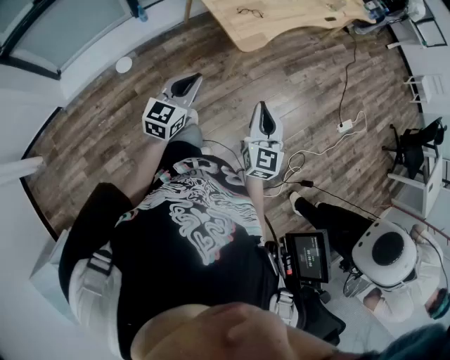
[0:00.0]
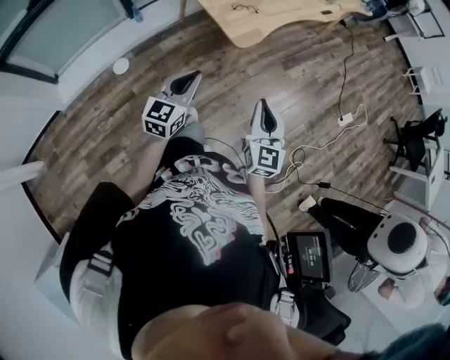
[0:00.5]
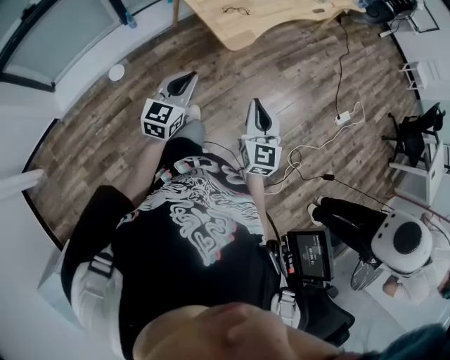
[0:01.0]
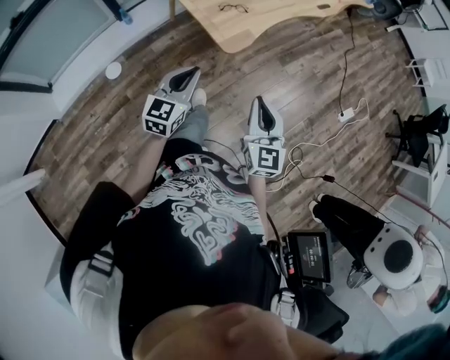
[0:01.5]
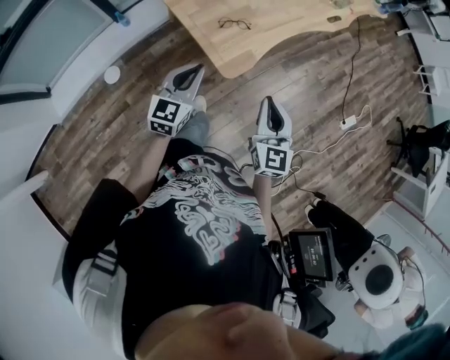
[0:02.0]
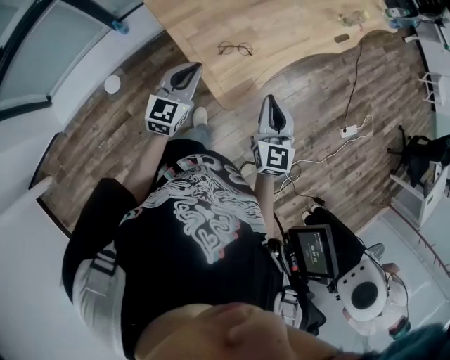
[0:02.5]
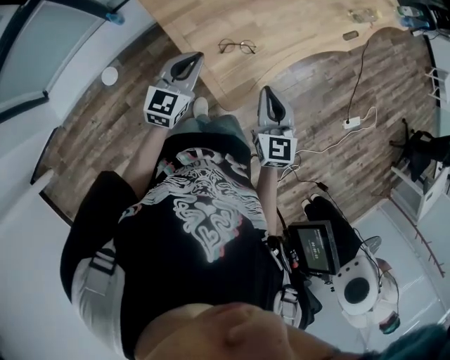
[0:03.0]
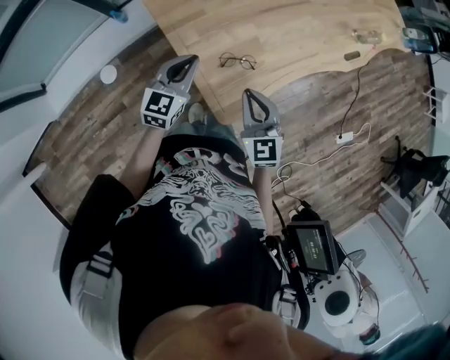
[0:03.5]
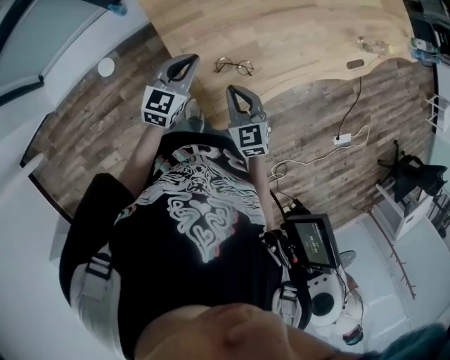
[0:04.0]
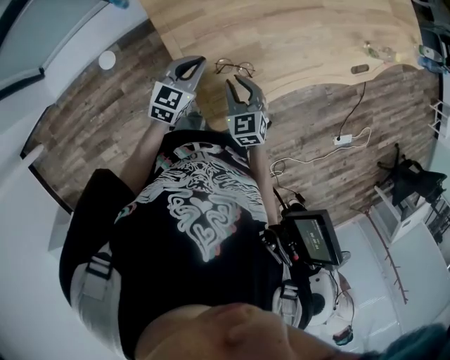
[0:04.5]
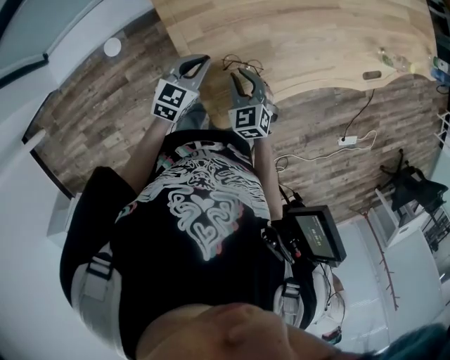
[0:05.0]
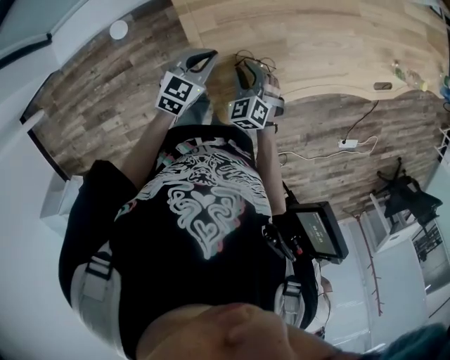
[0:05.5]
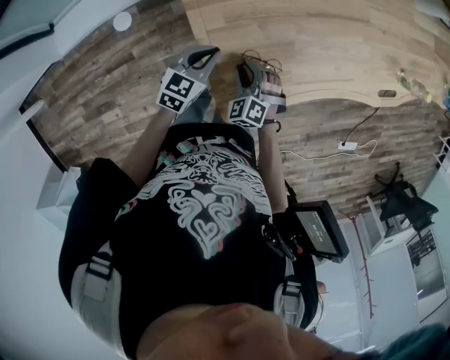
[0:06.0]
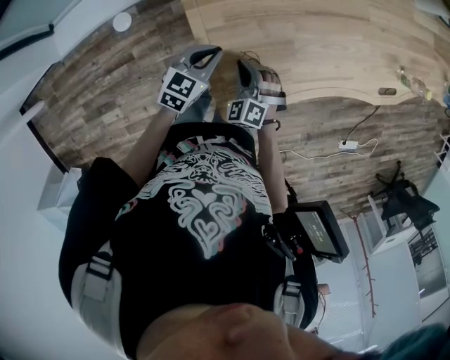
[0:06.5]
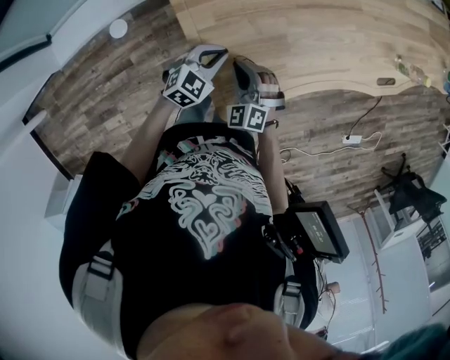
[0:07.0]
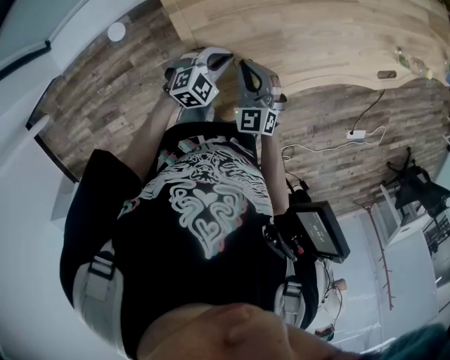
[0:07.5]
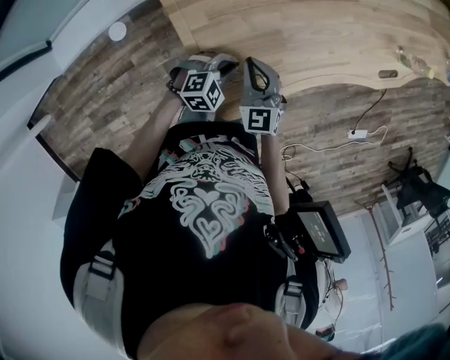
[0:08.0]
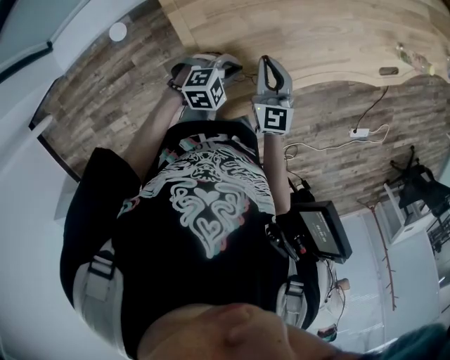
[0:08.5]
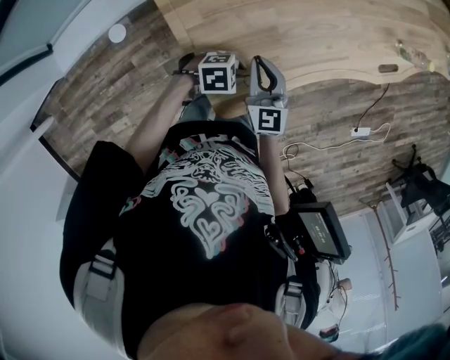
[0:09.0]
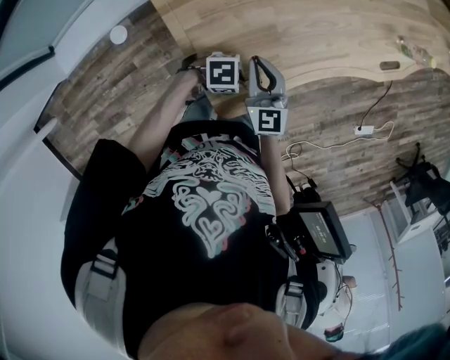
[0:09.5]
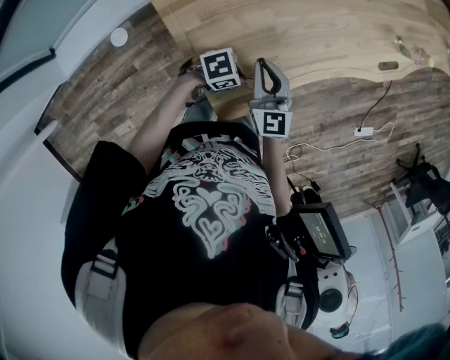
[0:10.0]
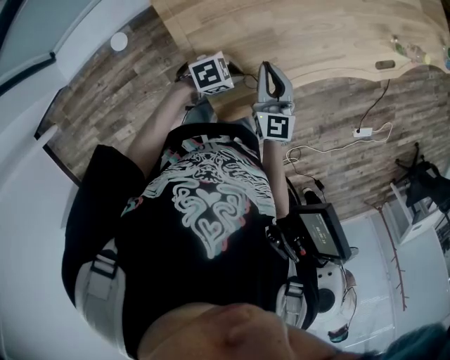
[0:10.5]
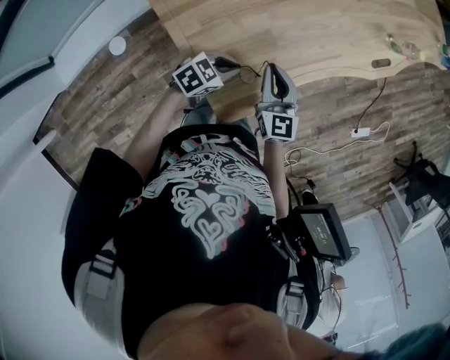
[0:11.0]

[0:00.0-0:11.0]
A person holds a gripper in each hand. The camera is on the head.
0:00.0 to 0:02.0: The grippers both shift forward by approximately 25 cm.
0:02.0 to 0:03.5: The right gripper heads forward and to the left, covering some 30 cm, and changes its angle by roughly 30 degrees. The left gripper moves forward, roughly 25 cm.
0:03.5 to 0:05.5: The left gripper moves downward, about 15 cm. Meanwhile the right gripper heads downward and forward, covering roughly 20 cm, turns by about 40 degrees, and opens.
0:05.5 to 0:07.5: The left gripper is displaced to the right and downward by about 10 cm, and turns by some 30 degrees, while the right gripper goes roughly 5 cm upward, swivels some 20 degrees, and closes up.
0:07.5 to 0:09.0: The right gripper ends up roughly 5 cm from where it was, and swivels approximately 30 degrees. Meanwhile the left gripper ends up roughly 10 cm from where it was, and swivels about 40 degrees.
0:09.0 to 0:11.0: The left gripper changes place by some 5 cm, and changes its angle by approximately 30 degrees. The right gripper shifts by some 5 cm.

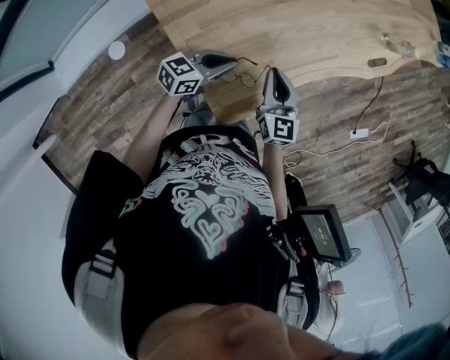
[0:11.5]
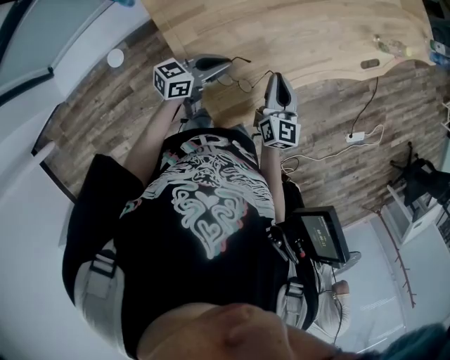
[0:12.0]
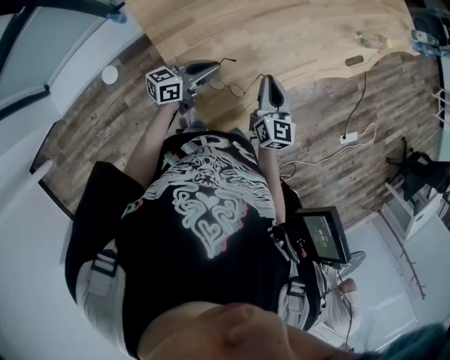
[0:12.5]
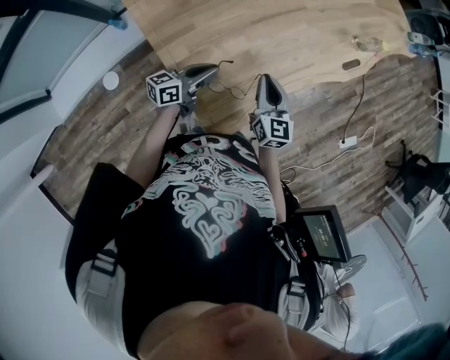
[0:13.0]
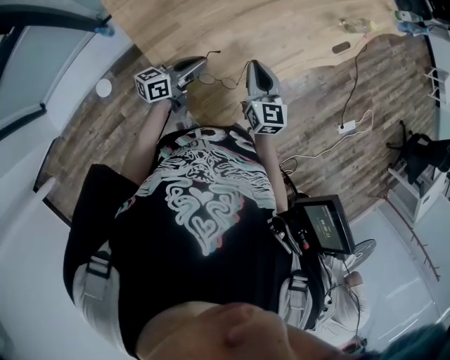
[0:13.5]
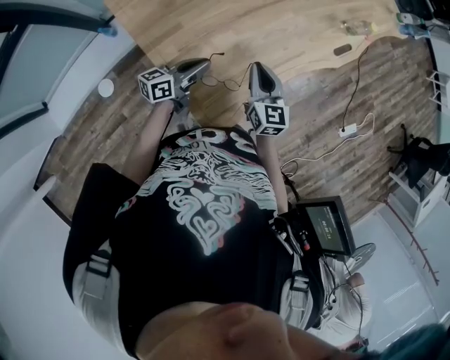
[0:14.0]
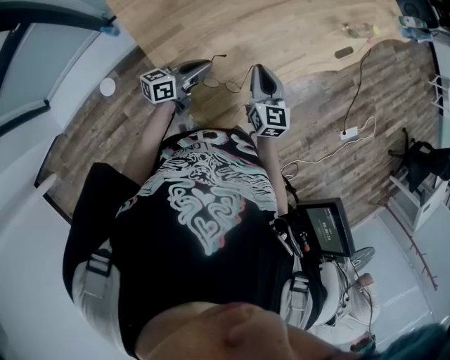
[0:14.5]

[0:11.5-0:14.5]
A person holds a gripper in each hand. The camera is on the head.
0:11.5 to 0:13.0: The right gripper moves upward, roughly 5 cm; the left gripper ends up approximately 5 cm from where it was, and rotates some 20 degrees.
0:13.0 to 0:14.5: Neither gripper changes place.

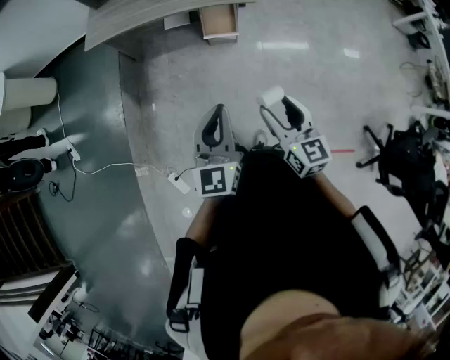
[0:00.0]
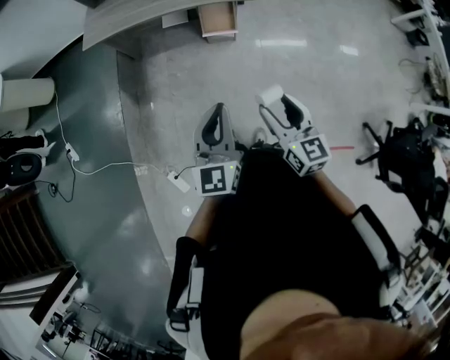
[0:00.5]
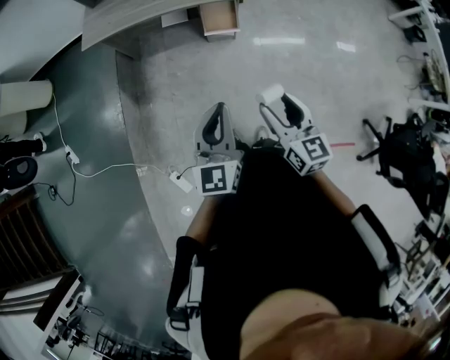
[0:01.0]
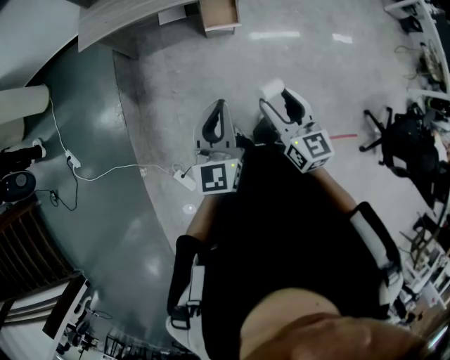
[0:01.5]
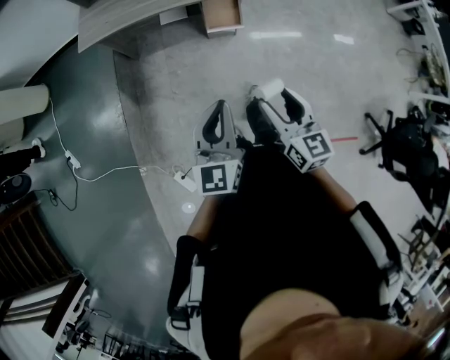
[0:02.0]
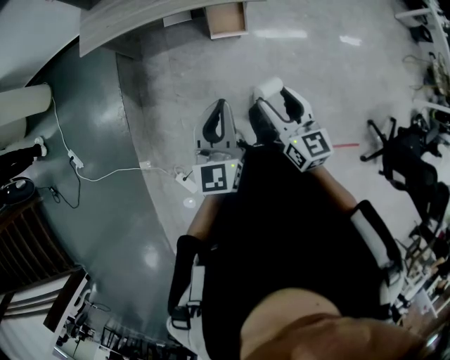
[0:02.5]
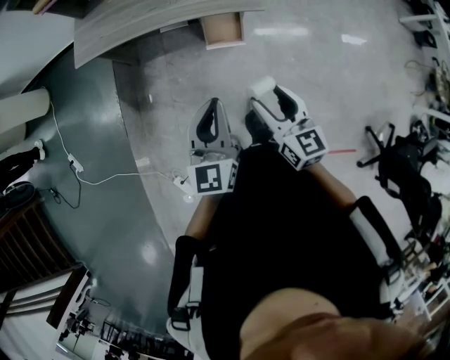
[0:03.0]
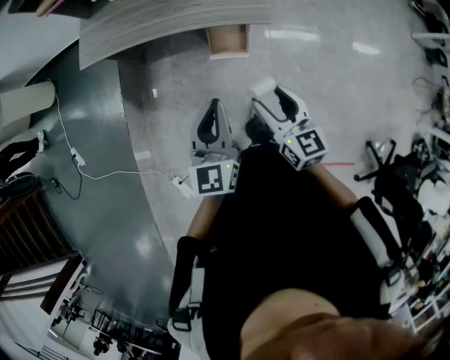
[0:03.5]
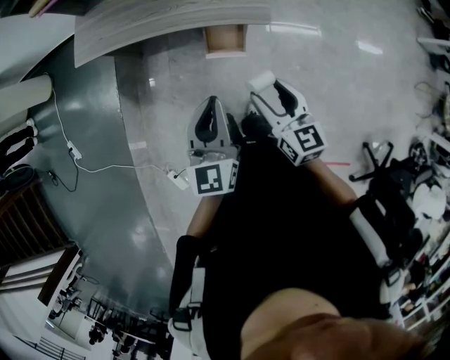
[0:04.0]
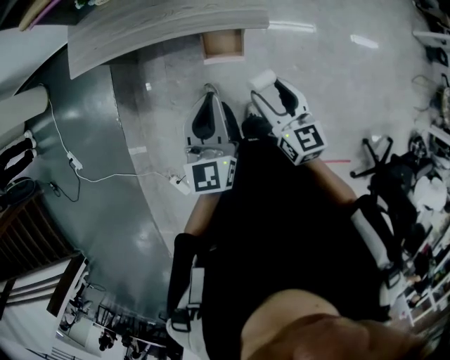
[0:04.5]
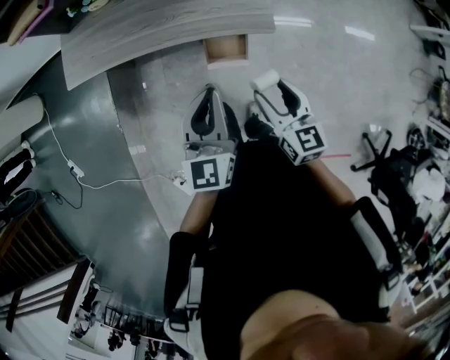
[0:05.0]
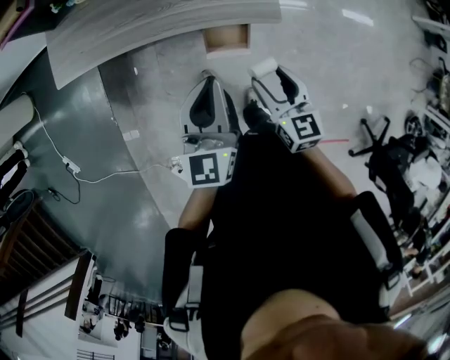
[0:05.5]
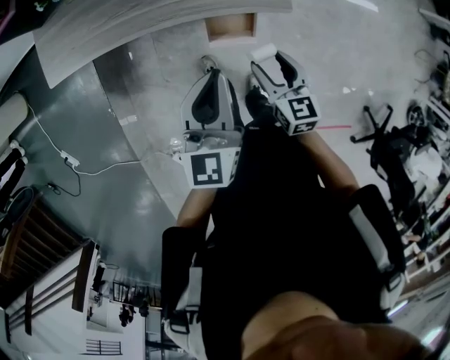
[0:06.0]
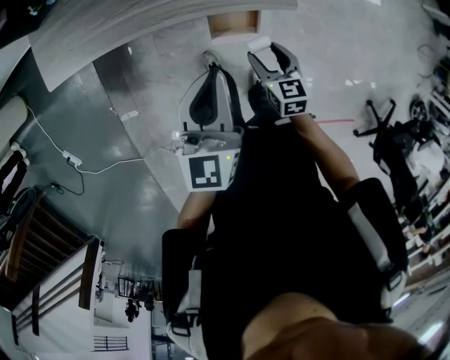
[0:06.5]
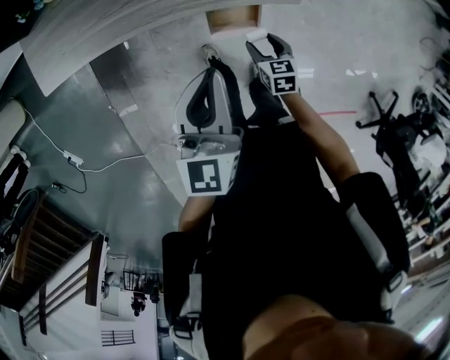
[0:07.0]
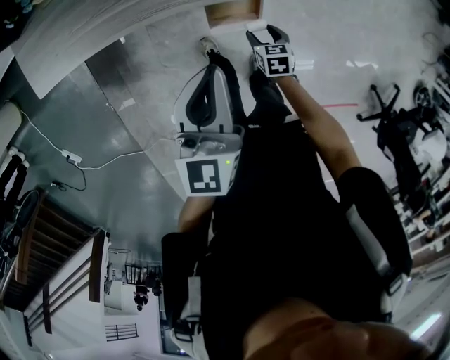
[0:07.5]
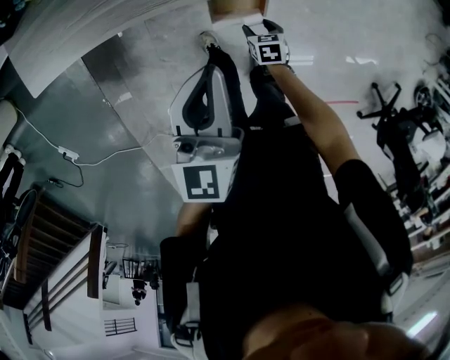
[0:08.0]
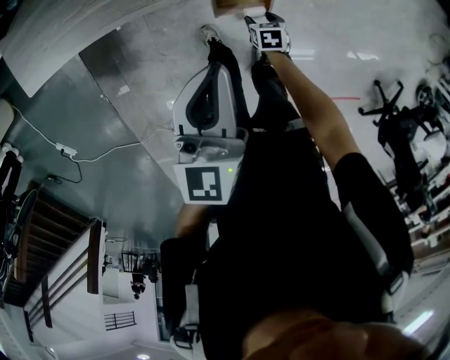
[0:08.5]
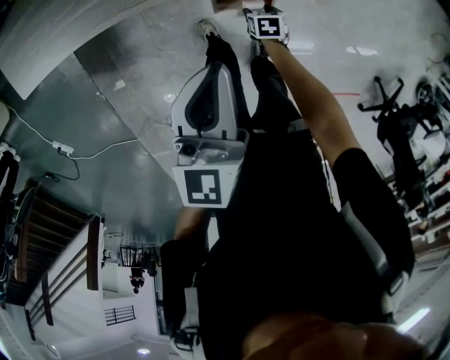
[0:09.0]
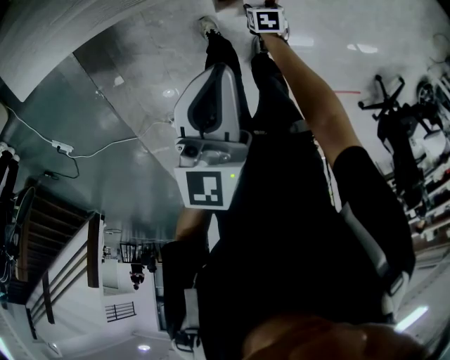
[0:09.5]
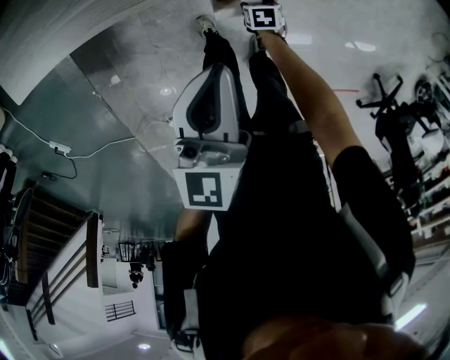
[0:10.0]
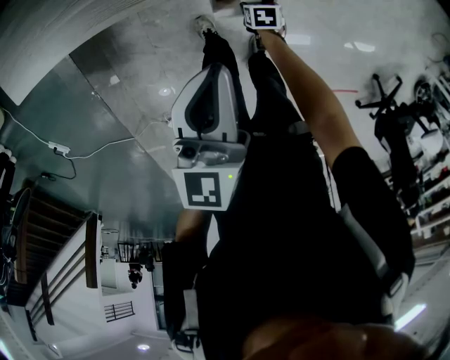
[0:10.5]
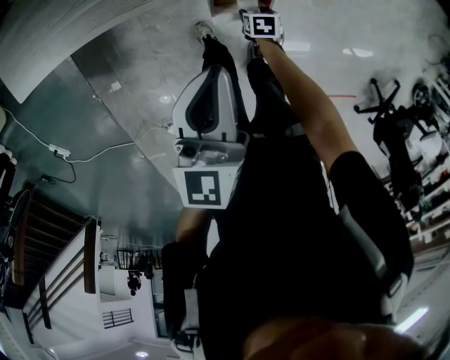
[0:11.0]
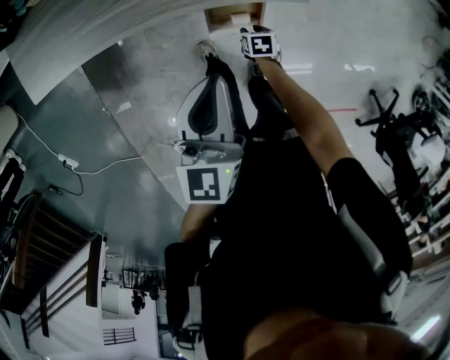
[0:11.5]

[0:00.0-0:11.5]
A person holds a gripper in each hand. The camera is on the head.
0:00.0 to 0:02.0: Both grippers travel together to the left, about 5 cm.
0:02.0 to 0:04.0: The grippers both shift forward and to the right by approximately 30 cm.
0:04.0 to 0:06.0: The left gripper travels forward by approximately 20 cm, while the right gripper moves forward and downward, some 20 cm.
0:06.0 to 0:07.5: The left gripper ends up approximately 5 cm from where it was. Meanwhile the right gripper goes roughly 25 cm downward, and changes its angle by roughly 30 degrees.
0:07.5 to 0:09.5: The right gripper travels downward by some 15 cm, while the left gripper moves downward, roughly 5 cm.
0:09.5 to 0:11.5: The right gripper travels upward by approximately 5 cm, and closes.

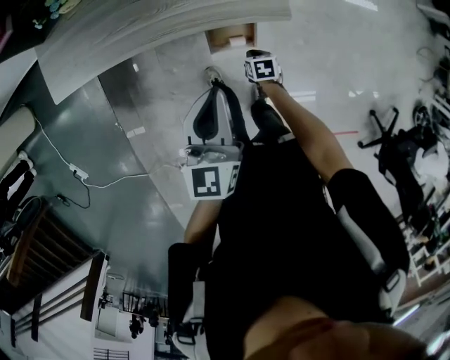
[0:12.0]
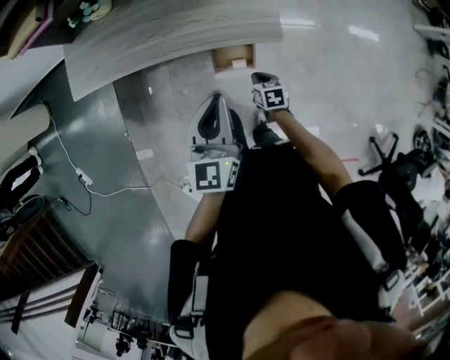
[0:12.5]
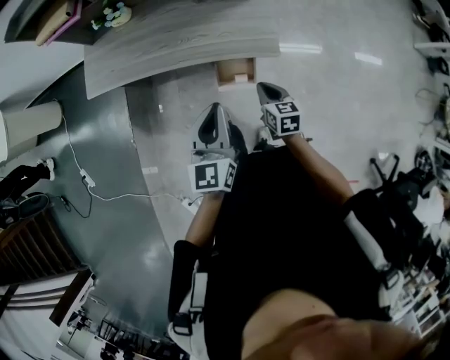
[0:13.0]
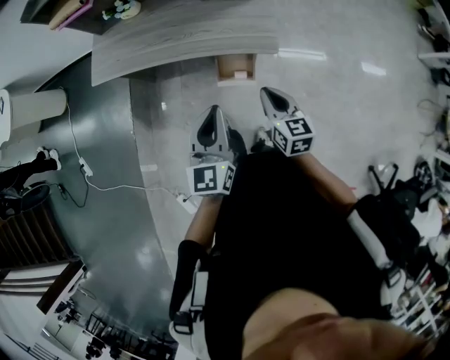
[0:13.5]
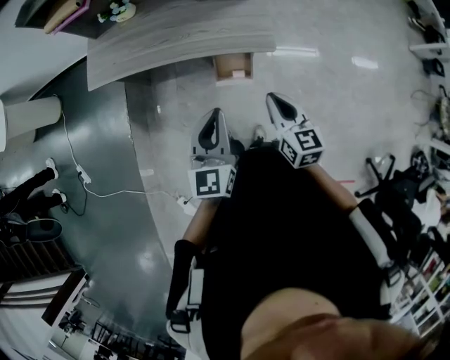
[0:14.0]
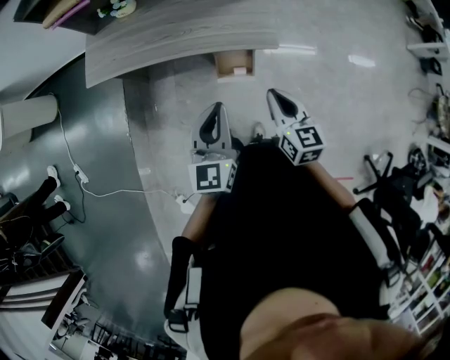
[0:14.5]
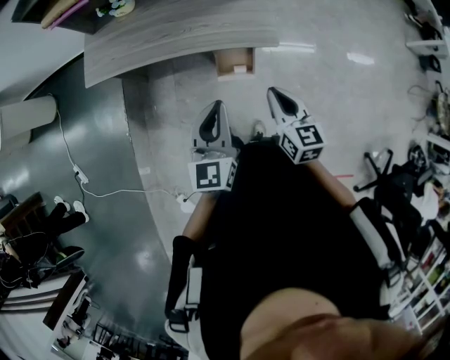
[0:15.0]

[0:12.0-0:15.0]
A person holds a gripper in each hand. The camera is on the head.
0:12.0 to 0:13.5: The left gripper travels backward and upward by approximately 15 cm. The right gripper goes roughly 35 cm upward, and tilts its fingers roughly 40 degrees upward.
0:13.5 to 0:15.0: The right gripper ends up roughly 5 cm from where it was.
